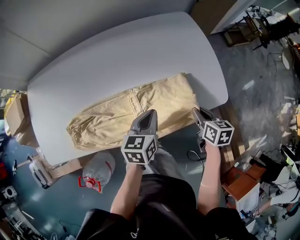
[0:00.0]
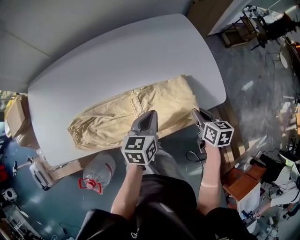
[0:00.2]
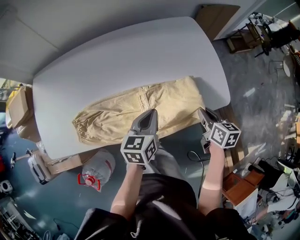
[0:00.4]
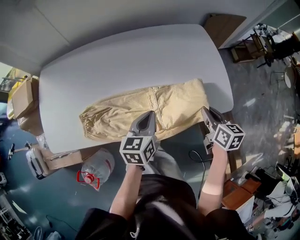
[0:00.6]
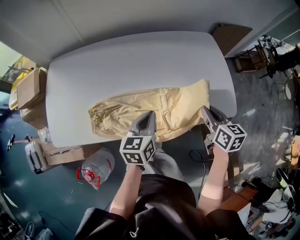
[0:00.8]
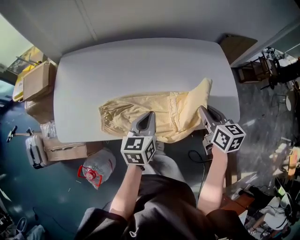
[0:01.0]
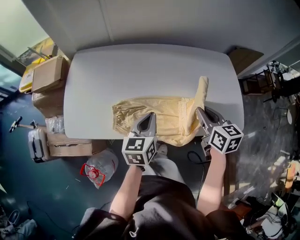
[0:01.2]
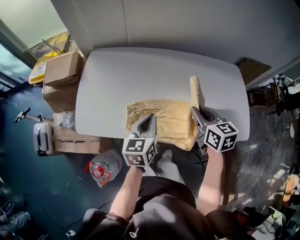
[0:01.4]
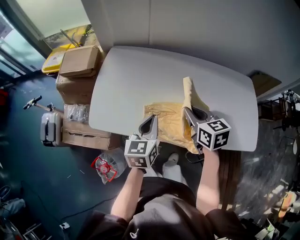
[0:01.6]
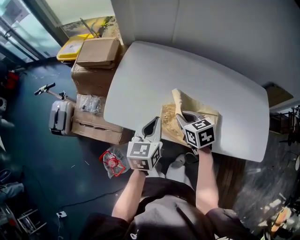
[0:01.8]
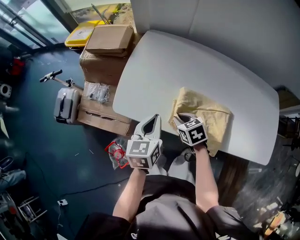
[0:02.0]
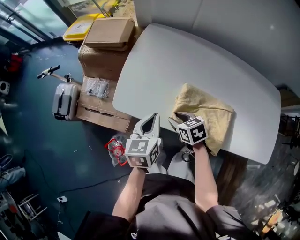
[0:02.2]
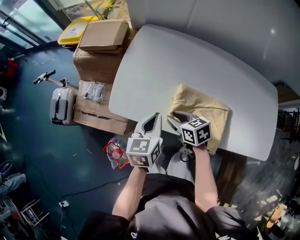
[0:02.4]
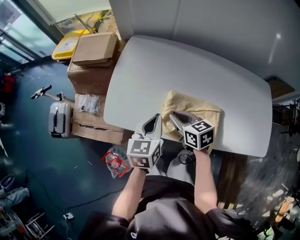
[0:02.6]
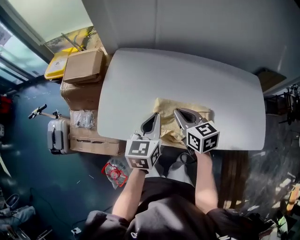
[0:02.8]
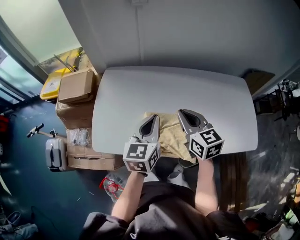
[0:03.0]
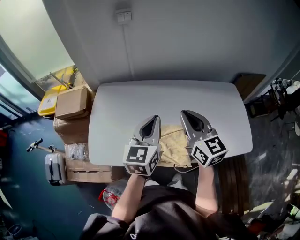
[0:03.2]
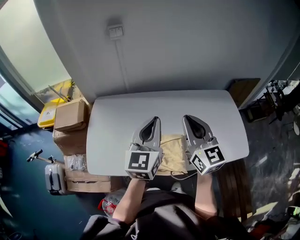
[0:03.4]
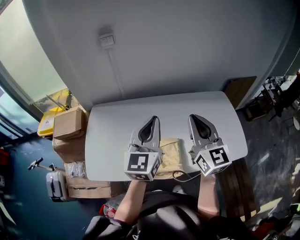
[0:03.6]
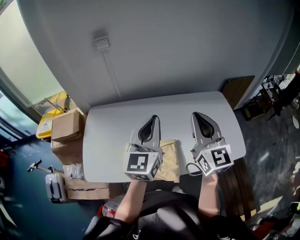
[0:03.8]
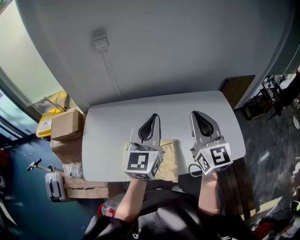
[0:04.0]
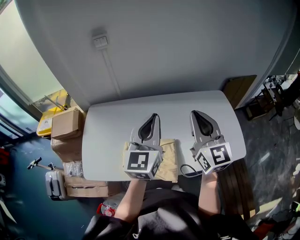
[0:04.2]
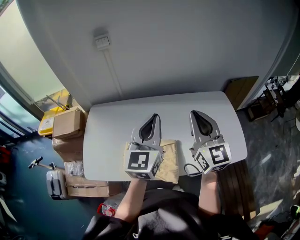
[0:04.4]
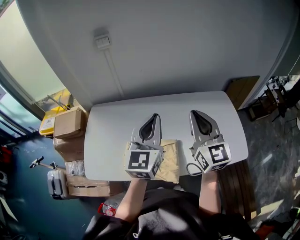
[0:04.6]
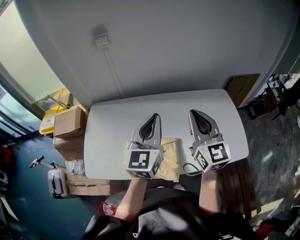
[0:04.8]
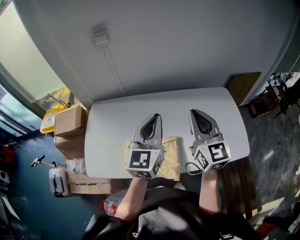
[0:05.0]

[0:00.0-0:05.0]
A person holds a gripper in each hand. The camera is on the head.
0:00.0 to 0:01.6: The right gripper changes place by about 50 cm, and turns by approximately 40 degrees; the left gripper ends up some 40 cm from where it was, and swivels about 30 degrees.
0:01.6 to 0:03.4: Both grippers move upward, approximately 20 cm. The left gripper swivels approximately 30 degrees; the right gripper tips its fingers upward by roughly 40 degrees, and opens and closes again.
0:03.4 to 0:05.0: The two grippers go approximately 10 cm to the right.

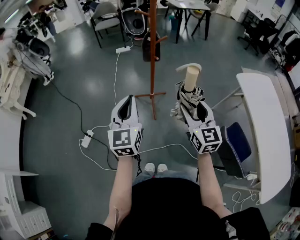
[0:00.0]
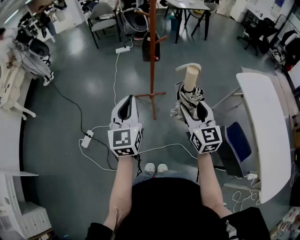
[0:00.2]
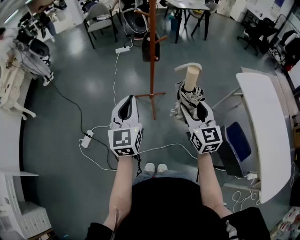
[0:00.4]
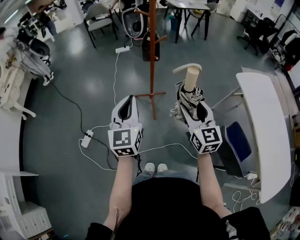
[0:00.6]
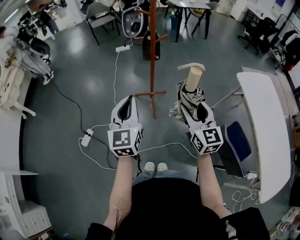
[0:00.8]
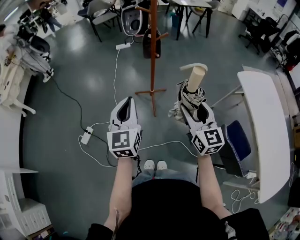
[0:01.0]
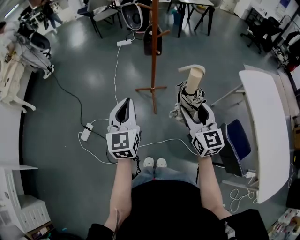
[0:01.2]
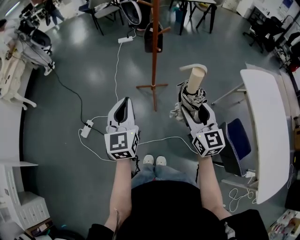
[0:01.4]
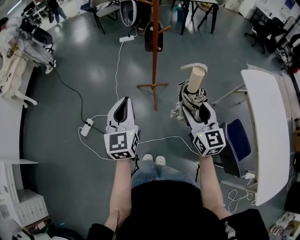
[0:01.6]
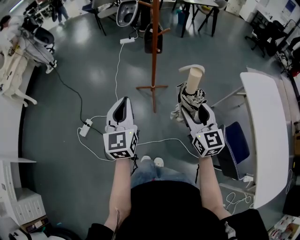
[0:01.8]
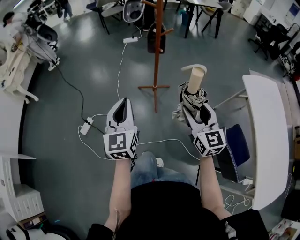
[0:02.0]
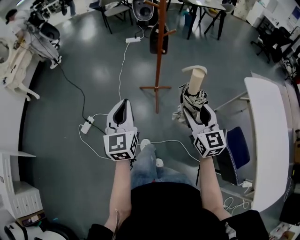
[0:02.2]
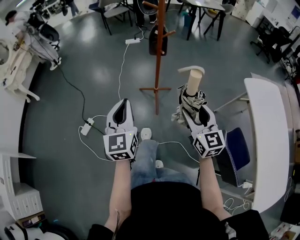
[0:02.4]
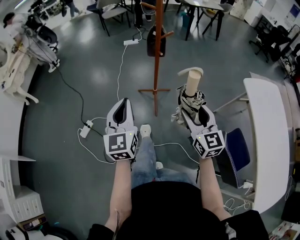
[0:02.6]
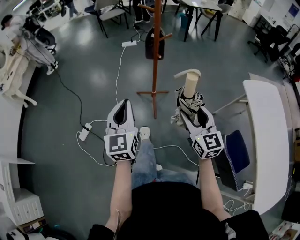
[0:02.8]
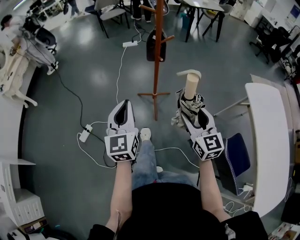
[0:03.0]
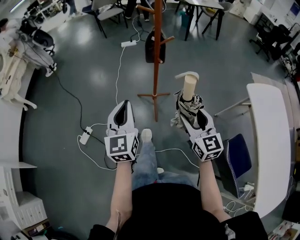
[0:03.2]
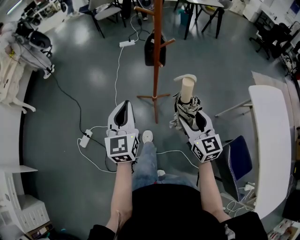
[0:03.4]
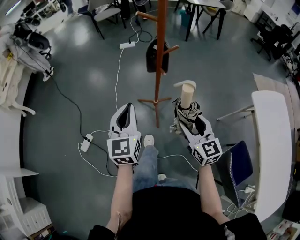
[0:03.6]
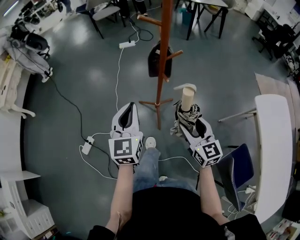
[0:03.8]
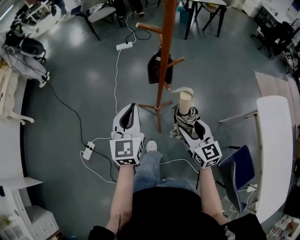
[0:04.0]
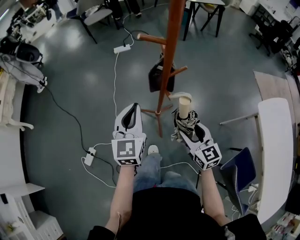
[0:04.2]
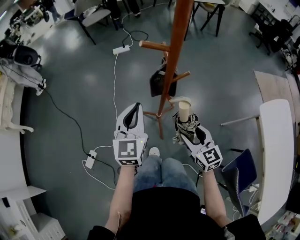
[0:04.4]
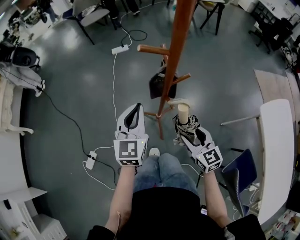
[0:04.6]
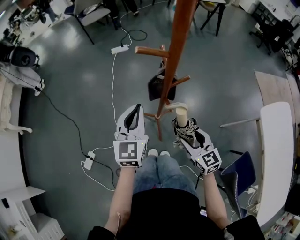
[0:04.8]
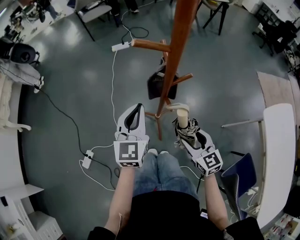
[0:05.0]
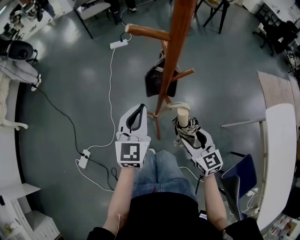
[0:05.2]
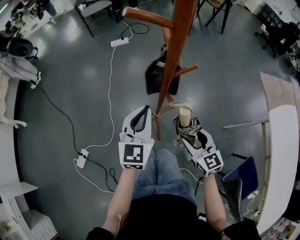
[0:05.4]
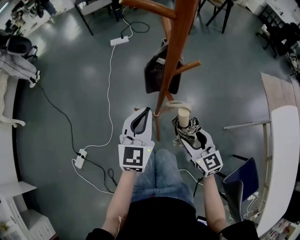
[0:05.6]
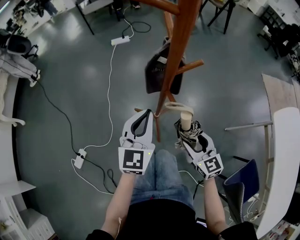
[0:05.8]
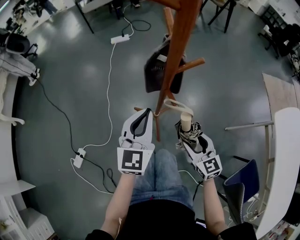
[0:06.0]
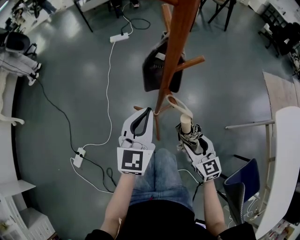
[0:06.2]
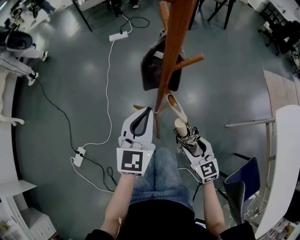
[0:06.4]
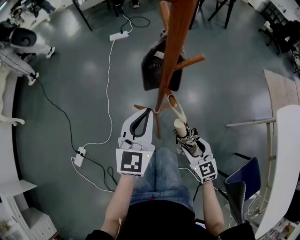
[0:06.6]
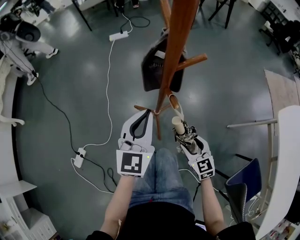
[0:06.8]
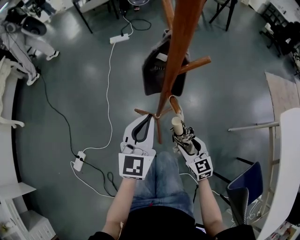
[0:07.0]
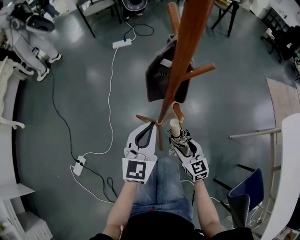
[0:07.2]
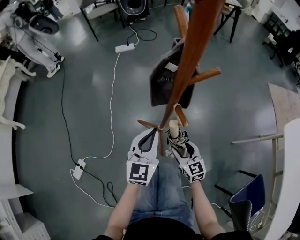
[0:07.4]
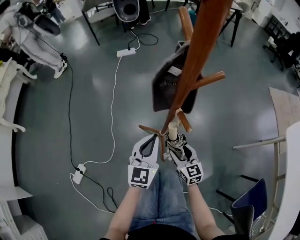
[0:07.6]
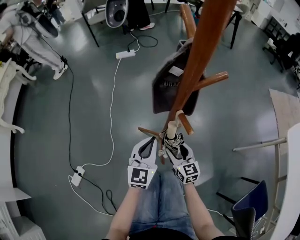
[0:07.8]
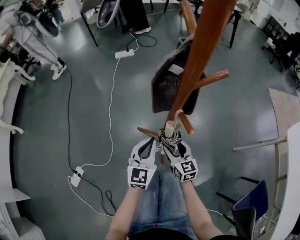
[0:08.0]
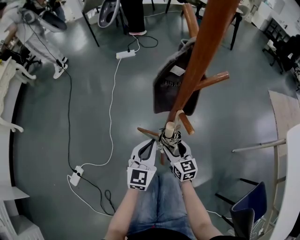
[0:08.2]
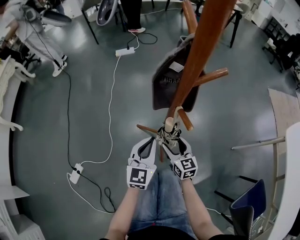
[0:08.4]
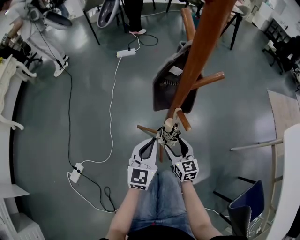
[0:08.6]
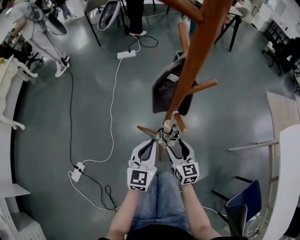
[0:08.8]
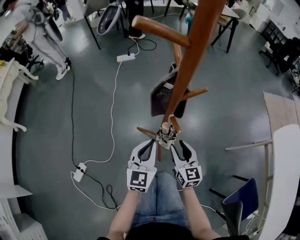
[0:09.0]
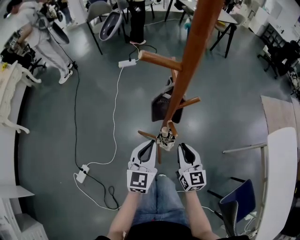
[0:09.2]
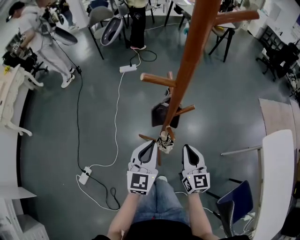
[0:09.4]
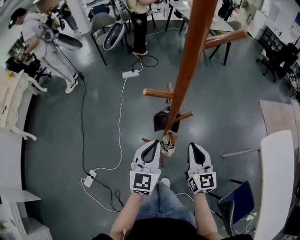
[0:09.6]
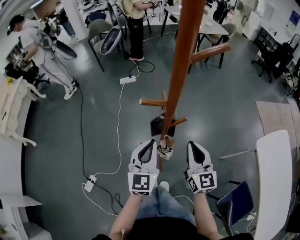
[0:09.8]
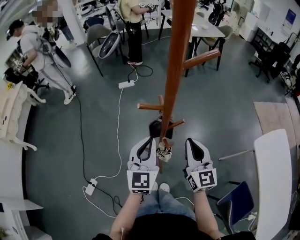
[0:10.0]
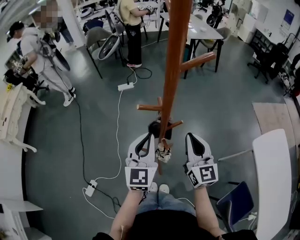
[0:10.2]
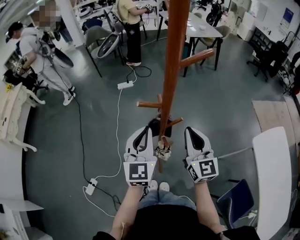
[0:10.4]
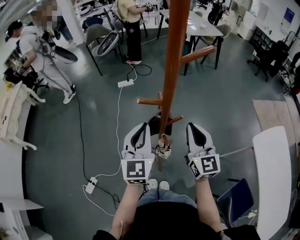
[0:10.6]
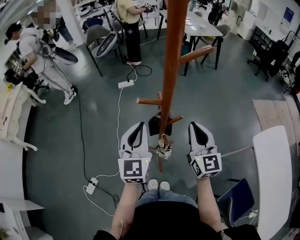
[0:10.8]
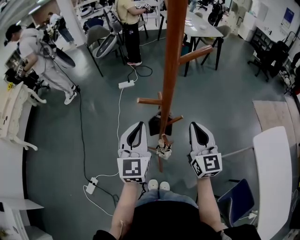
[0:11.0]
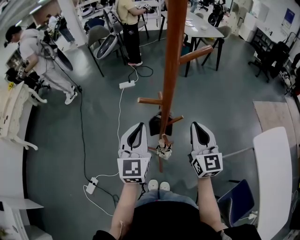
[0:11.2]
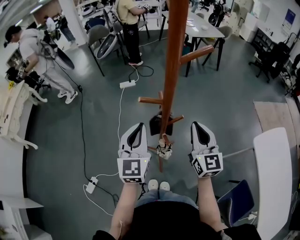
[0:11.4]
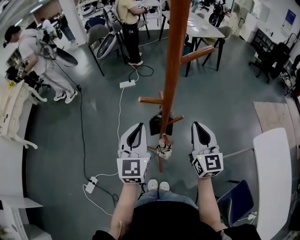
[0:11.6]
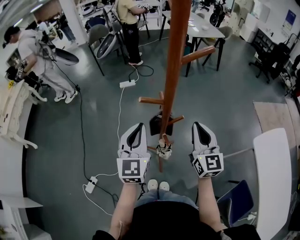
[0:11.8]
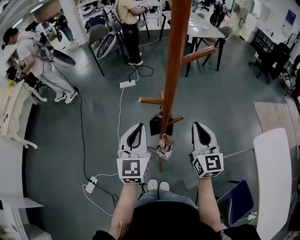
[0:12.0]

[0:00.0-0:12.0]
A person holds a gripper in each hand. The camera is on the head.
0:00.0 to 0:01.6: The grippers stay close to where they were, moving slightly.
0:01.6 to 0:03.0: Both grippers move forward, about 5 cm.
0:03.0 to 0:04.4: Both grippers travel together forward, roughly 30 cm.
0:04.4 to 0:06.0: The left gripper travels downward and to the right by approximately 15 cm; the right gripper goes roughly 15 cm downward.
0:06.0 to 0:07.6: The left gripper shifts some 15 cm downward. The right gripper goes some 20 cm downward, forward and to the left.
0:07.6 to 0:09.0: The left gripper travels upward by roughly 10 cm, while the right gripper travels upward by some 15 cm.
0:09.0 to 0:10.4: Both grippers travel together upward, about 35 cm. The right gripper closes its fingers.
0:10.4 to 0:12.0: The grippers make only small movements.

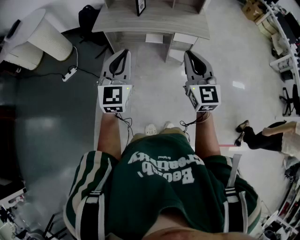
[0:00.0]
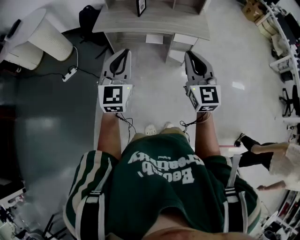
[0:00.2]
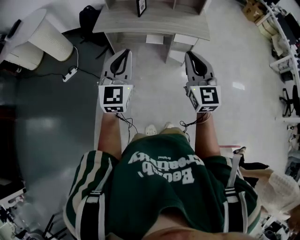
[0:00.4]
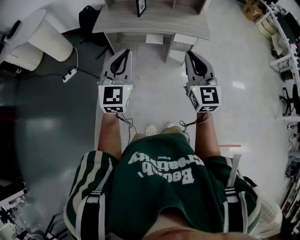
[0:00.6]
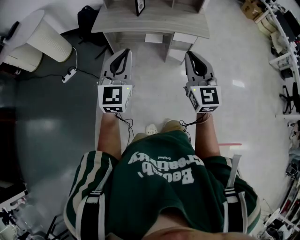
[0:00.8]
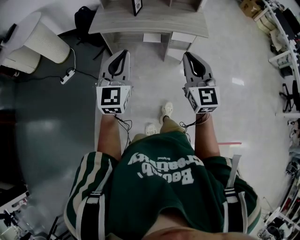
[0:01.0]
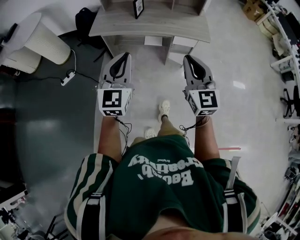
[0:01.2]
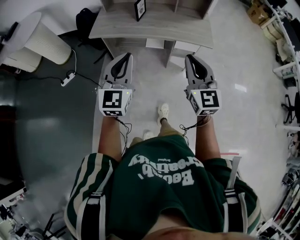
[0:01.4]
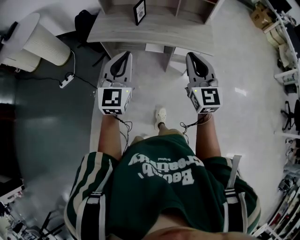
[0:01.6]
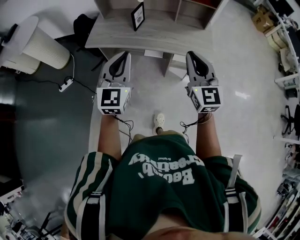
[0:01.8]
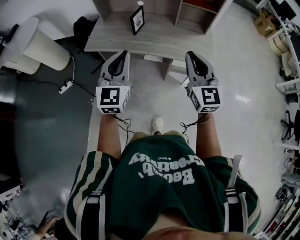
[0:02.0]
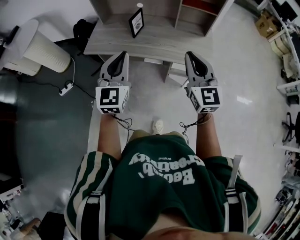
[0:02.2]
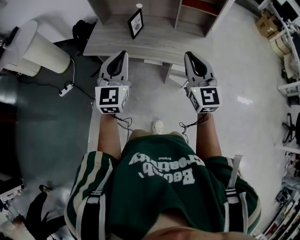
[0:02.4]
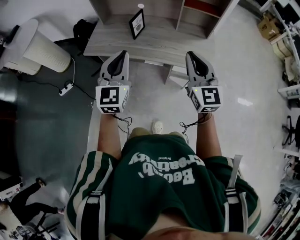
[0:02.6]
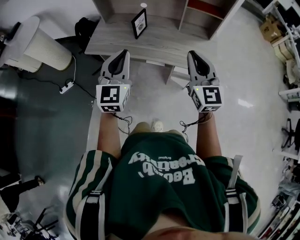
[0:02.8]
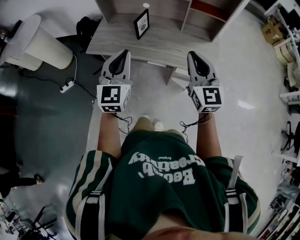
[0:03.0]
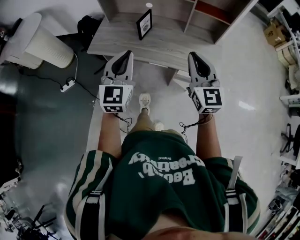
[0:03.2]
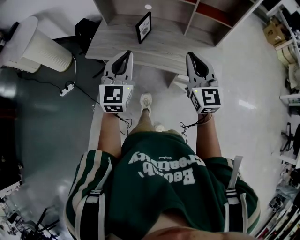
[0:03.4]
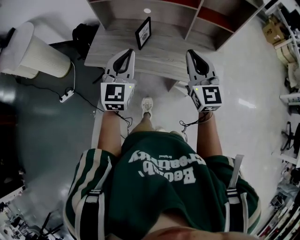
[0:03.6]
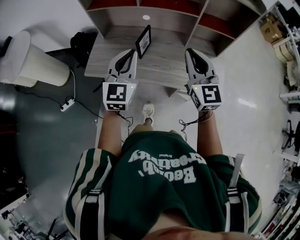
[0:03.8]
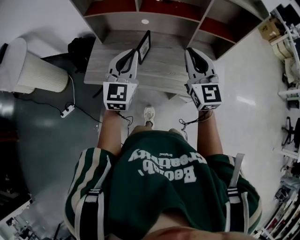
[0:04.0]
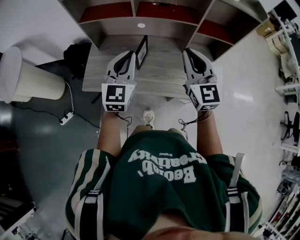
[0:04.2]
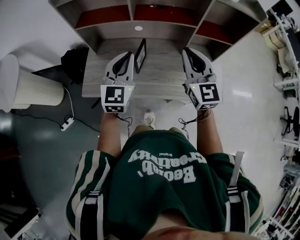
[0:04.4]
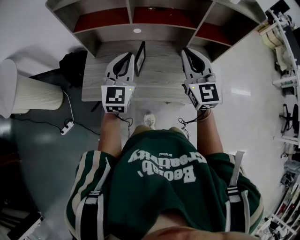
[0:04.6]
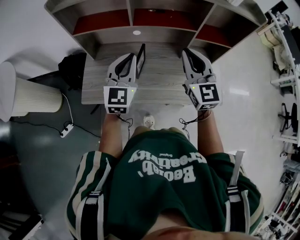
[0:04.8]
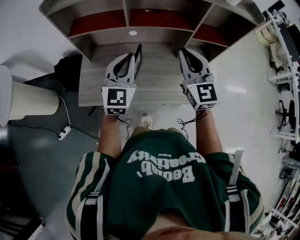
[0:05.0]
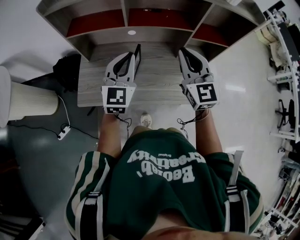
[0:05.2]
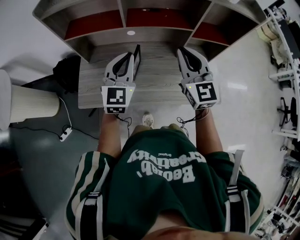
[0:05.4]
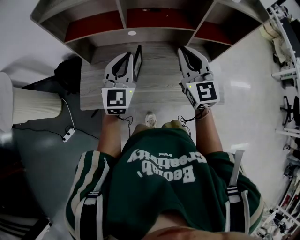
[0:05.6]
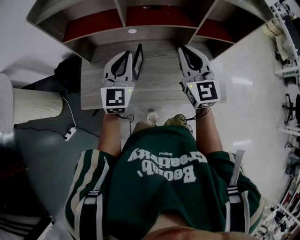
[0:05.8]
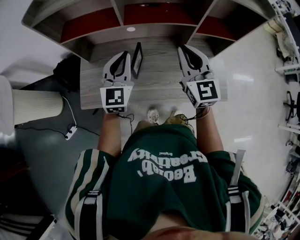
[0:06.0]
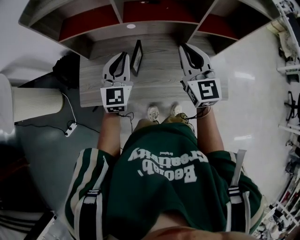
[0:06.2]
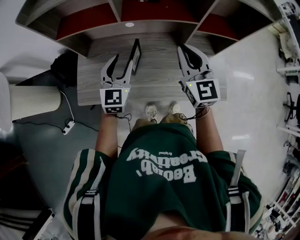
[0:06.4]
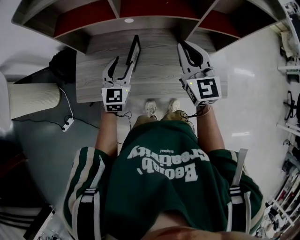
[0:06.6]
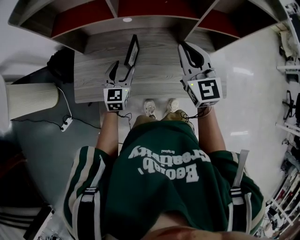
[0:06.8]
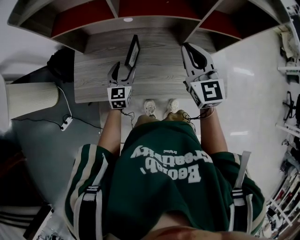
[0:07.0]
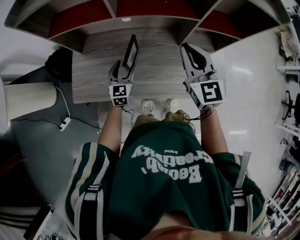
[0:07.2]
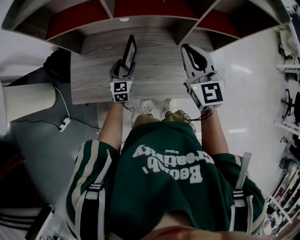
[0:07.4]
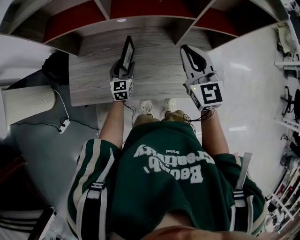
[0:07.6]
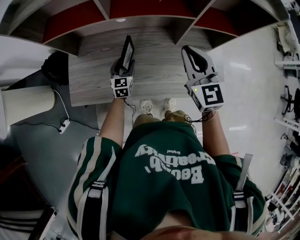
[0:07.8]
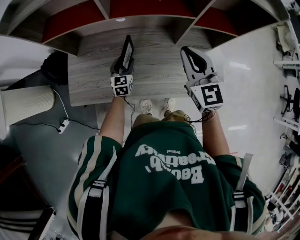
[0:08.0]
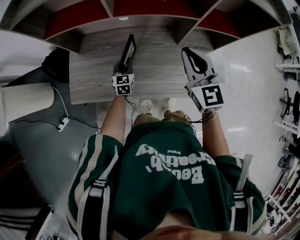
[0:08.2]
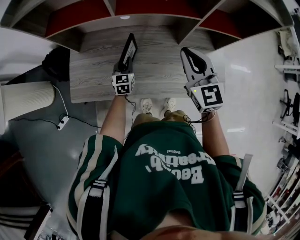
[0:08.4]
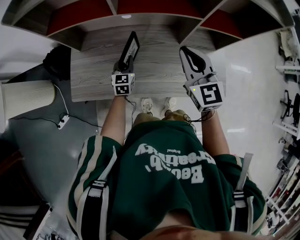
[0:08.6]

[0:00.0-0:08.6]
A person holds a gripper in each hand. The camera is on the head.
0:00.0 to 0:01.4: Both grippers travel together forward, some 10 cm.
0:01.4 to 0:02.8: The grippers both shift forward by roughly 20 cm.
0:02.8 to 0:04.4: The two grippers go about 30 cm forward.
0:04.4 to 0:05.8: Both grippers move forward, roughly 5 cm.
0:05.8 to 0:07.2: The right gripper ends up some 5 cm from where it was; the left gripper travels downward by about 25 cm, changes its angle by about 20 degrees, and opens.
0:07.2 to 0:08.6: The left gripper closes.
